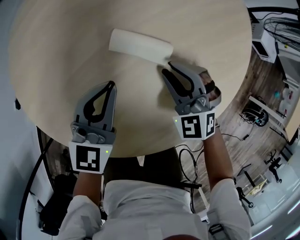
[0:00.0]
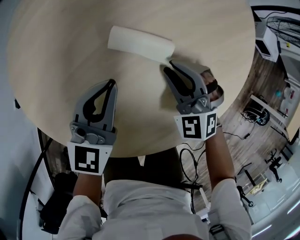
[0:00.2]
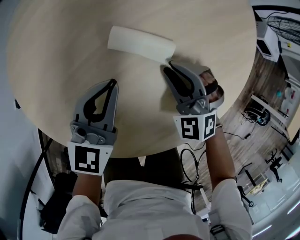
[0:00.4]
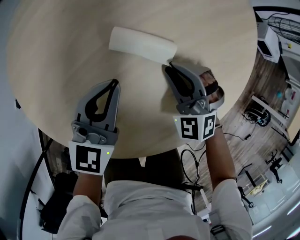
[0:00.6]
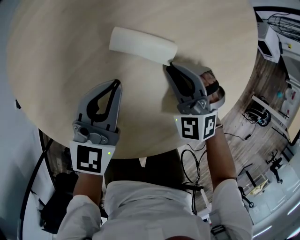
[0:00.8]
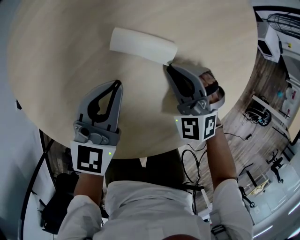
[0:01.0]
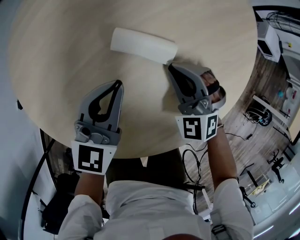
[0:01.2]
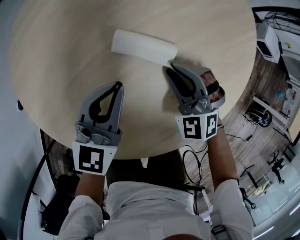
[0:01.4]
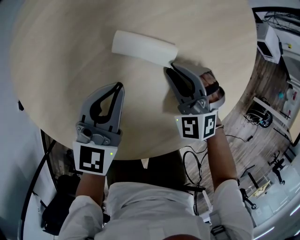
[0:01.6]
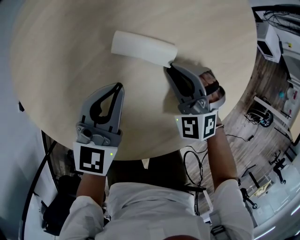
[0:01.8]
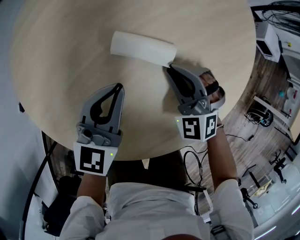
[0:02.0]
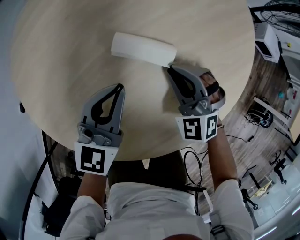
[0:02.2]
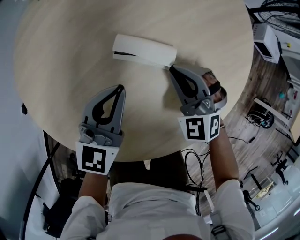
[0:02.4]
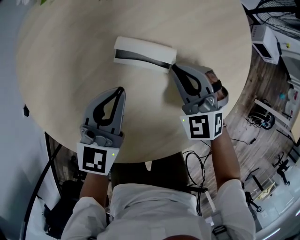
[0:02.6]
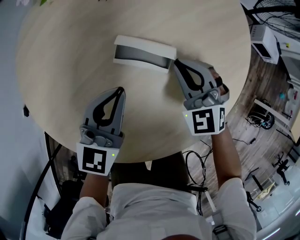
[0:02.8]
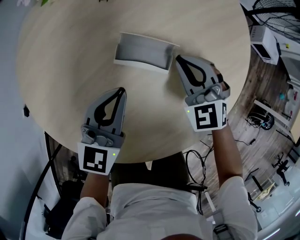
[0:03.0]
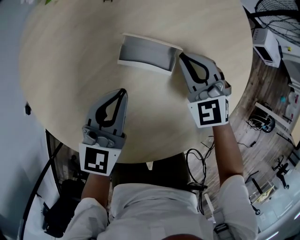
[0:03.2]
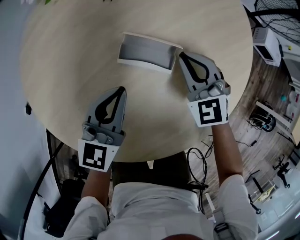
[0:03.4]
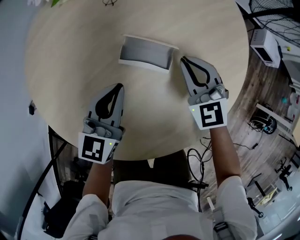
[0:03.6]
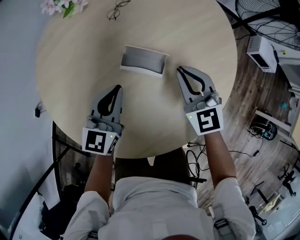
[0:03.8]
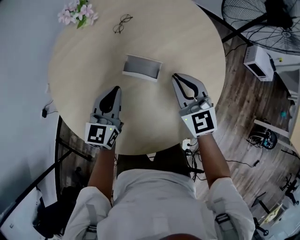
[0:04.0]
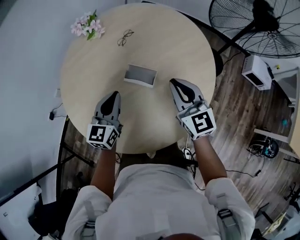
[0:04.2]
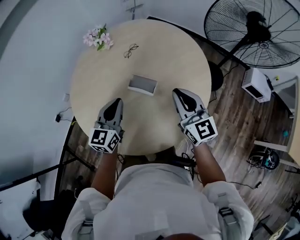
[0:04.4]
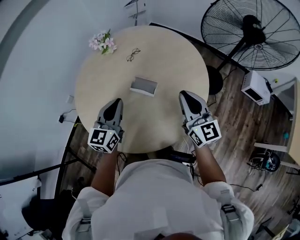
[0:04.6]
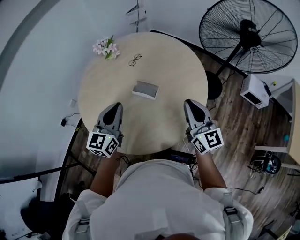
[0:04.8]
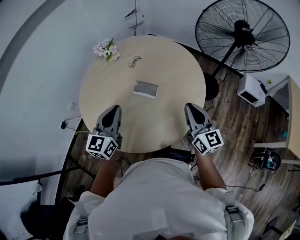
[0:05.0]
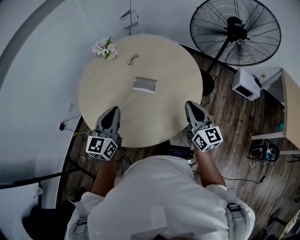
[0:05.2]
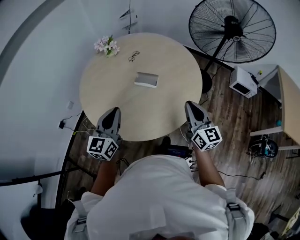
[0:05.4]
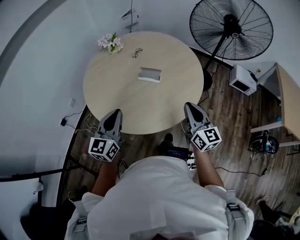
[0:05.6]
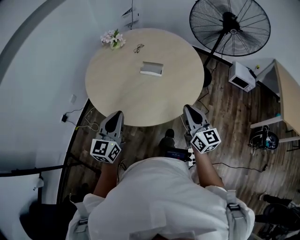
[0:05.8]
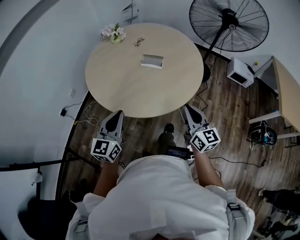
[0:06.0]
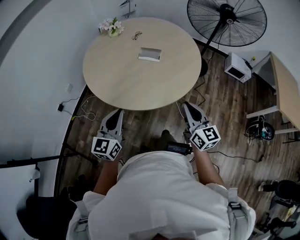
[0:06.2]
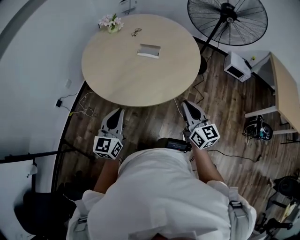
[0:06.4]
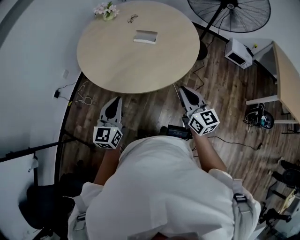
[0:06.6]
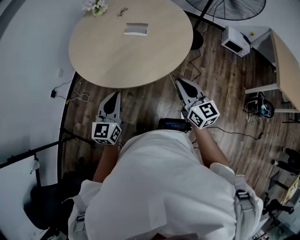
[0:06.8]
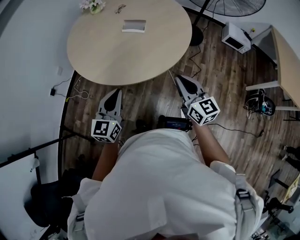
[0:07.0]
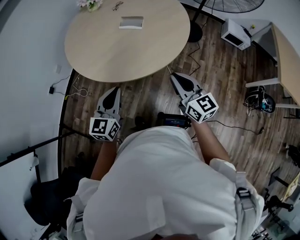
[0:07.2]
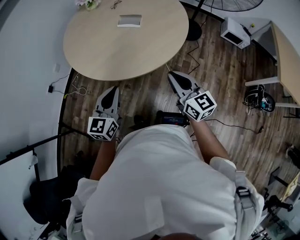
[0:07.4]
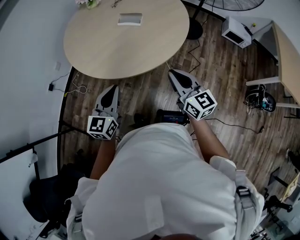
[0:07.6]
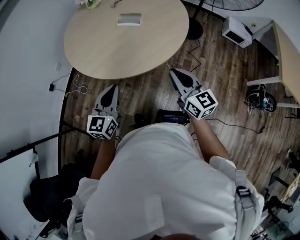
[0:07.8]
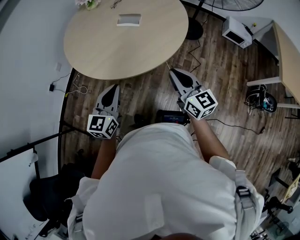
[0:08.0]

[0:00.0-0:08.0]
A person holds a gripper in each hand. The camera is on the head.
0.0 to 1.6 s: The grippers make only small movements.
1.6 to 3.2 s: The right gripper moves forward, approximately 5 cm, and turns by about 20 degrees.
3.2 to 4.8 s: The left gripper shifts some 30 cm upward and backward. Meanwhile the right gripper travels upward, backward and to the right by roughly 40 cm, and tilts its fingers roughly 30 degrees upward.
4.8 to 6.4 s: Both grippers travel together backward, approximately 35 cm.
6.4 to 8.0 s: The right gripper goes roughly 5 cm to the right; the left gripper shifts roughly 10 cm to the right.

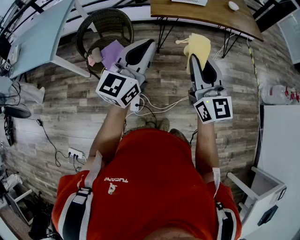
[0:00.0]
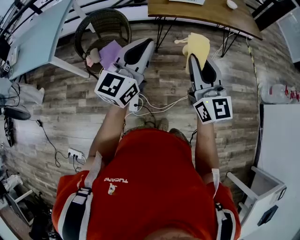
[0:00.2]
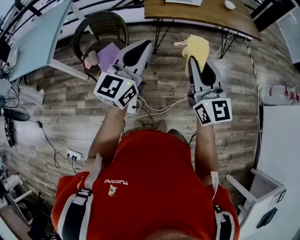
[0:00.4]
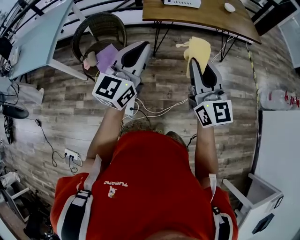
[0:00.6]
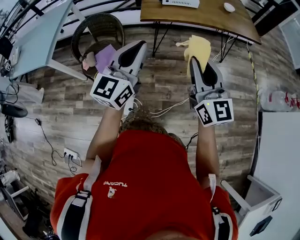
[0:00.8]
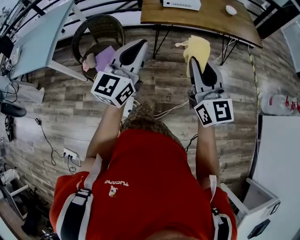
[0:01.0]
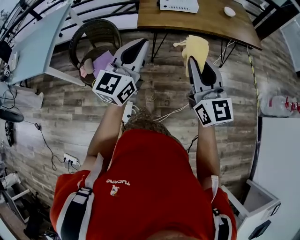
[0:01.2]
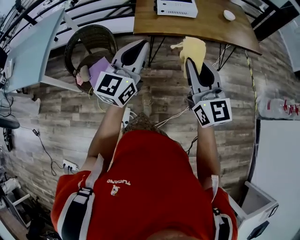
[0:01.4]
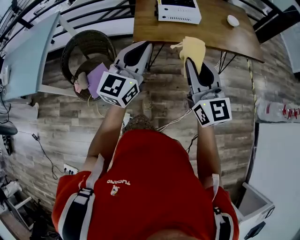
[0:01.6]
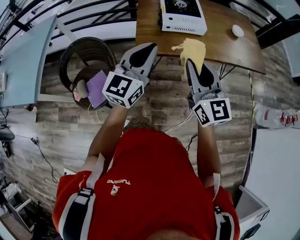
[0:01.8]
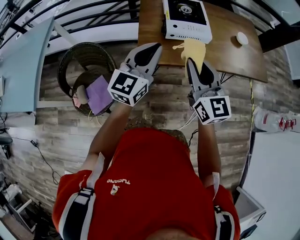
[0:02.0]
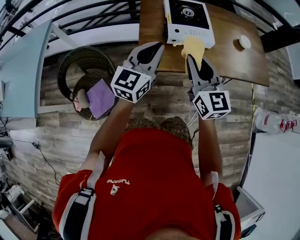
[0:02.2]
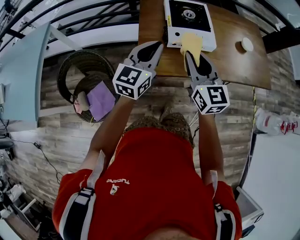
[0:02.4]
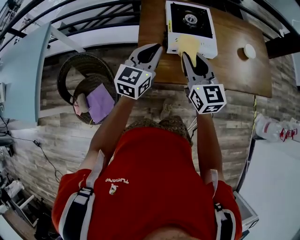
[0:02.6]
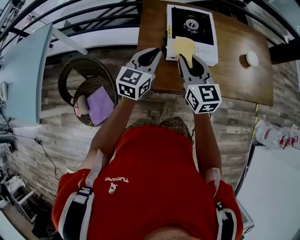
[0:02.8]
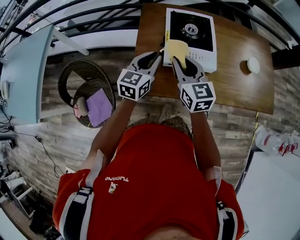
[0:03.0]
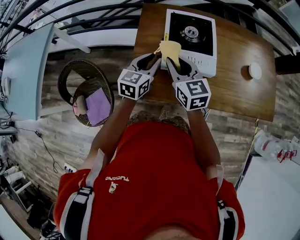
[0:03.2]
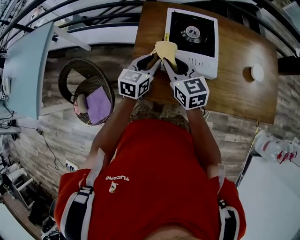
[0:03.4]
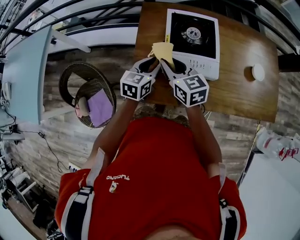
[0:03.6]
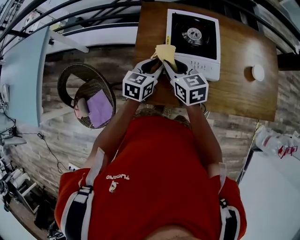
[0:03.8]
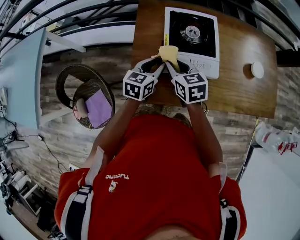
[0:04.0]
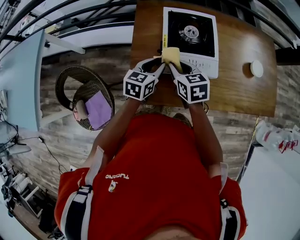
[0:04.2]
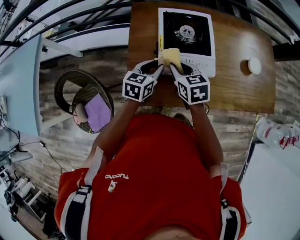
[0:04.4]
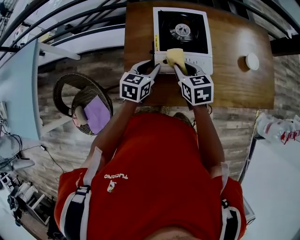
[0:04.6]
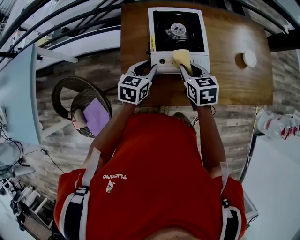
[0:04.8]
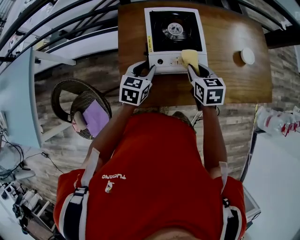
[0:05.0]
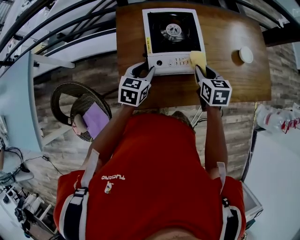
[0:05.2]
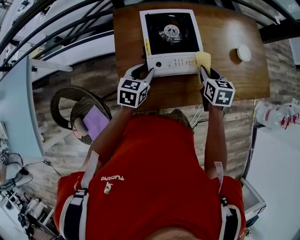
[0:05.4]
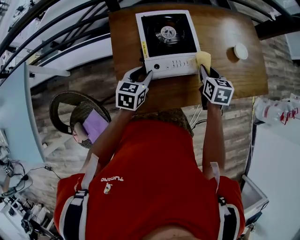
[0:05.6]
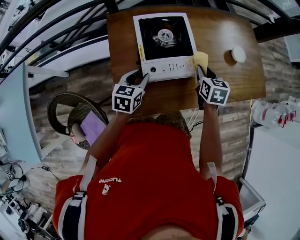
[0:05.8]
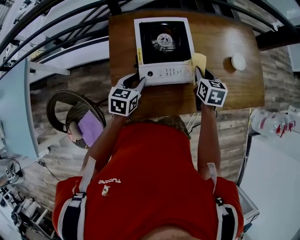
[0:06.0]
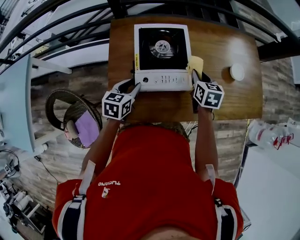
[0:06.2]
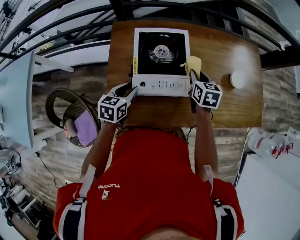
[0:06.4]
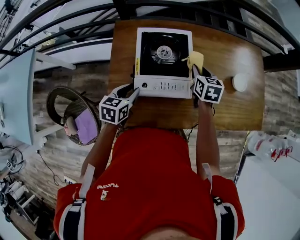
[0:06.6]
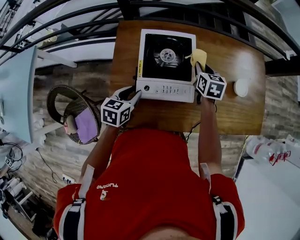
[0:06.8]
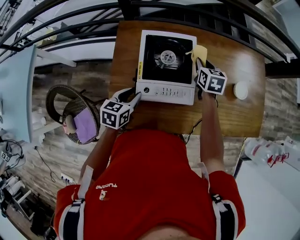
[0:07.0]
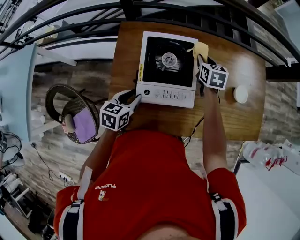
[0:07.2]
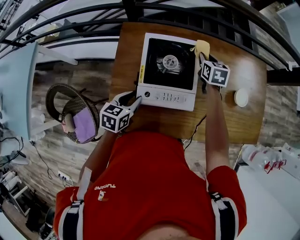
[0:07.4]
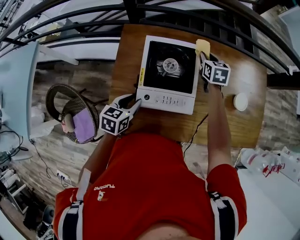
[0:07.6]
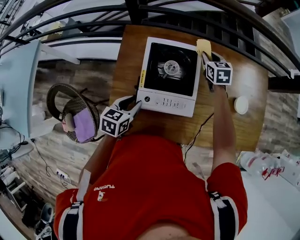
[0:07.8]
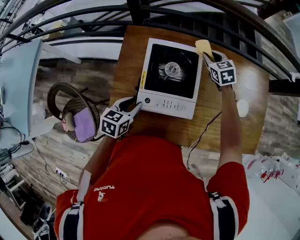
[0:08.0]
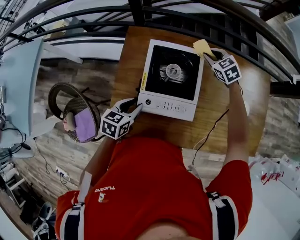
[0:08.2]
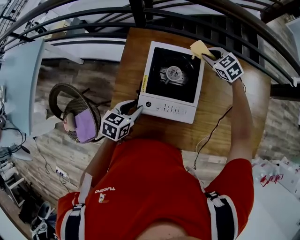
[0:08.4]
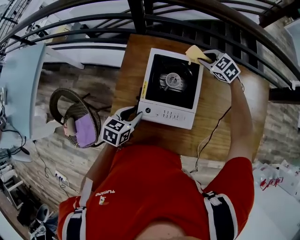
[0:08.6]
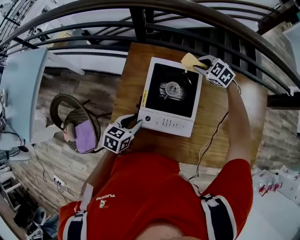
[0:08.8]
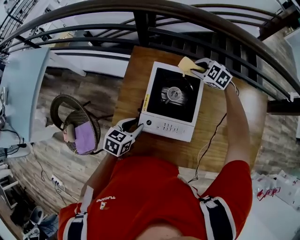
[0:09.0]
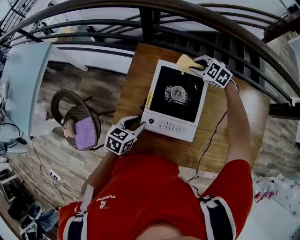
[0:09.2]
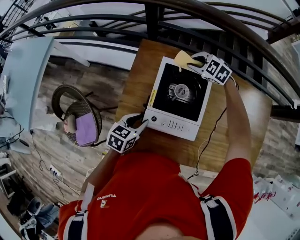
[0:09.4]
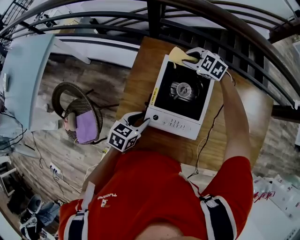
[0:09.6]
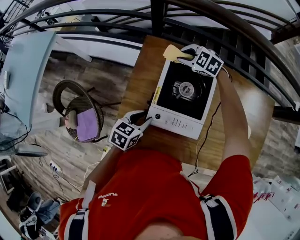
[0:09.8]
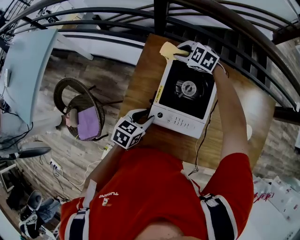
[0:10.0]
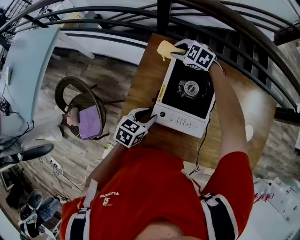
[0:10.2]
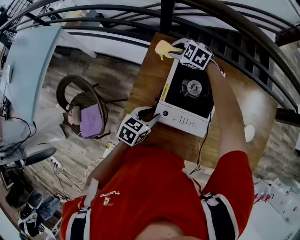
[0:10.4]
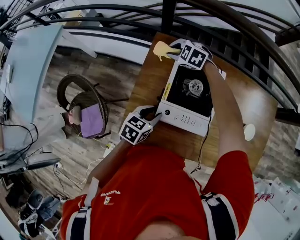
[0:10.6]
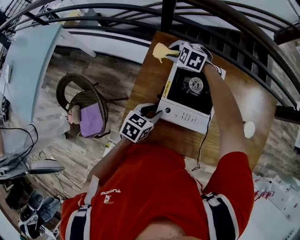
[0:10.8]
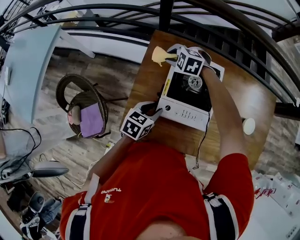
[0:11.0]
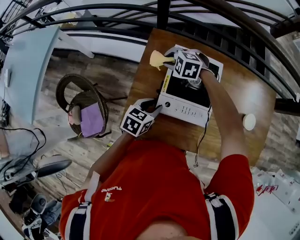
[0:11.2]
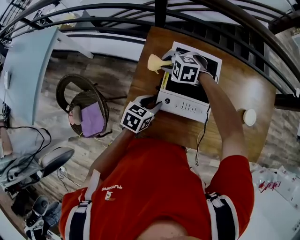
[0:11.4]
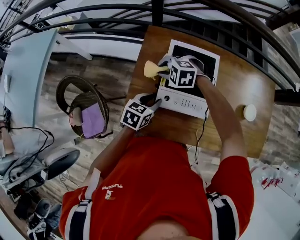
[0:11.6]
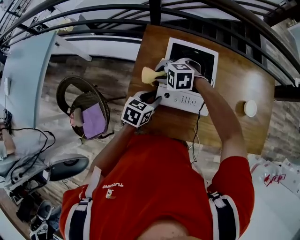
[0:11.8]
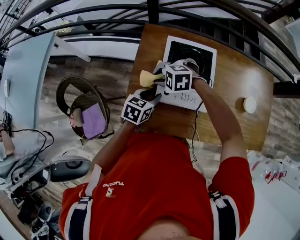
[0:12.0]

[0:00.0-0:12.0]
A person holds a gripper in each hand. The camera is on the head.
0.0 to 1.6 s: The two grippers go some 25 cm forward.
1.6 to 3.0 s: The two grippers go approximately 40 cm forward. The left gripper rotates roughly 20 degrees; the right gripper rotates roughly 20 degrees.
3.0 to 4.4 s: The right gripper moves downward and forward, roughly 10 cm, and turns by about 30 degrees, while the left gripper heads downward, covering about 10 cm.
4.4 to 6.0 s: The right gripper goes about 20 cm to the right, and rotates about 30 degrees.
6.0 to 7.6 s: The right gripper is displaced forward by about 25 cm.
7.6 to 9.0 s: The right gripper moves some 10 cm, and rotates around the line of its fingers by approximately 60 degrees, counterclockwise from behind.
9.0 to 10.4 s: The right gripper goes about 20 cm to the left.
10.4 to 12.0 s: The right gripper changes place by about 25 cm.

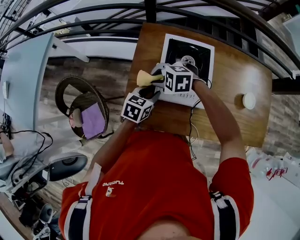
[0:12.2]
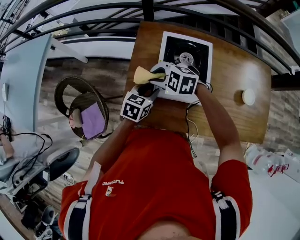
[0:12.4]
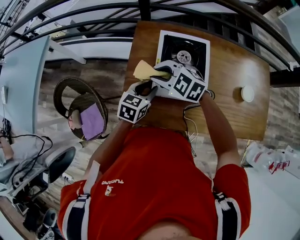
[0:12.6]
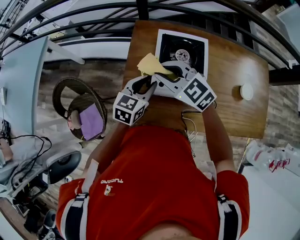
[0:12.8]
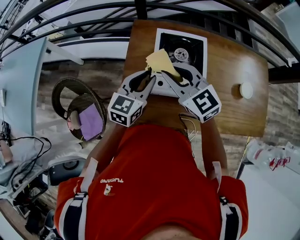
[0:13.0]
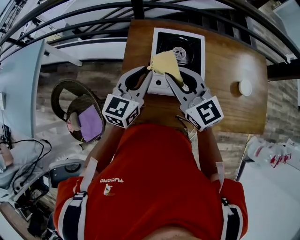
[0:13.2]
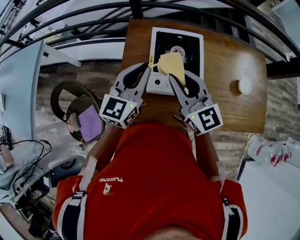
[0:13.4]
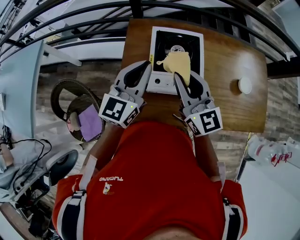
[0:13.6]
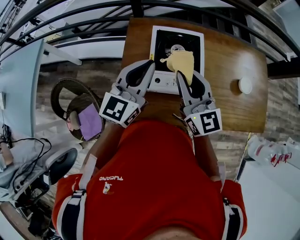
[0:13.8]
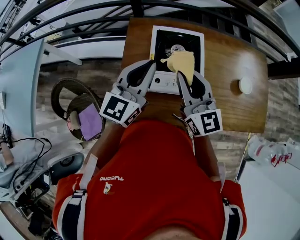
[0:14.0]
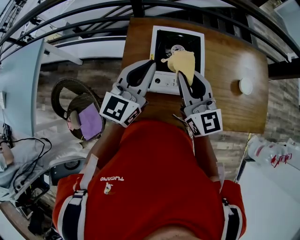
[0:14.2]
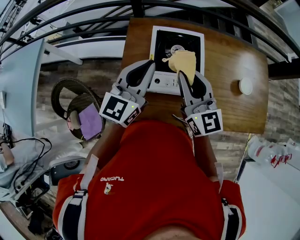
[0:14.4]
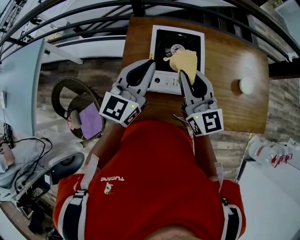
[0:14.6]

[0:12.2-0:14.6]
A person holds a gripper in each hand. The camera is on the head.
12.2 to 13.4 s: Both grippers travel together upward, approximately 15 cm. The right gripper points its fingers roughly 50 degrees further upward. The left gripper tilts its fingers some 40 degrees upward, and closes up.
13.4 to 14.6 s: The grippers make only small movements.

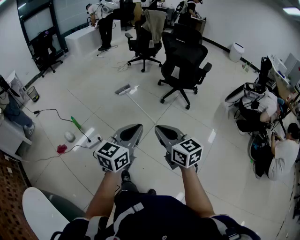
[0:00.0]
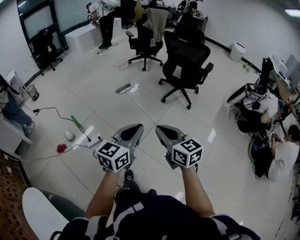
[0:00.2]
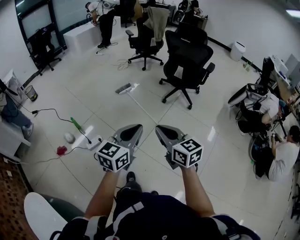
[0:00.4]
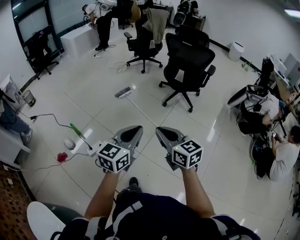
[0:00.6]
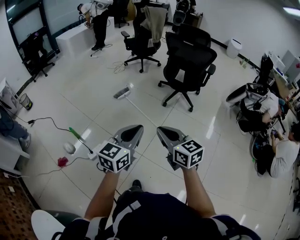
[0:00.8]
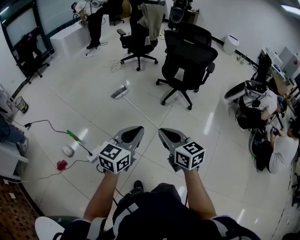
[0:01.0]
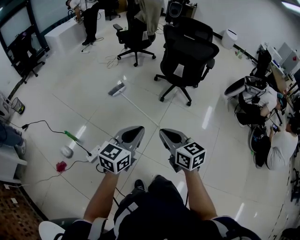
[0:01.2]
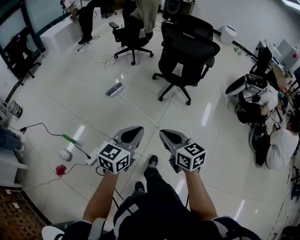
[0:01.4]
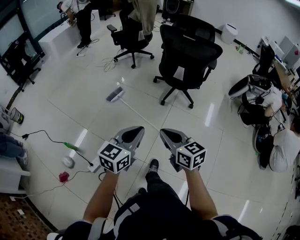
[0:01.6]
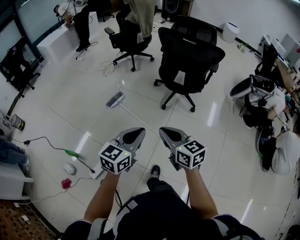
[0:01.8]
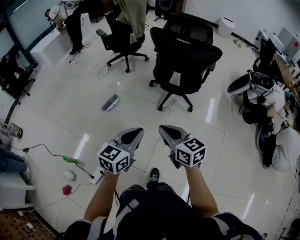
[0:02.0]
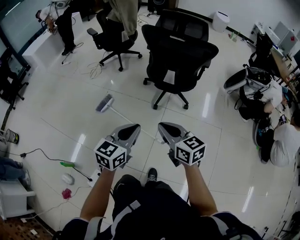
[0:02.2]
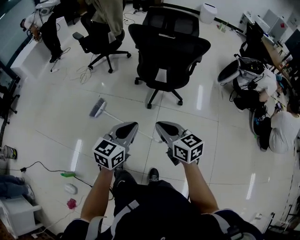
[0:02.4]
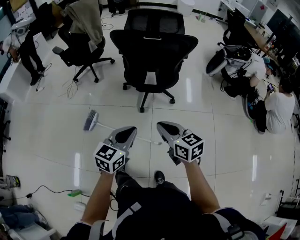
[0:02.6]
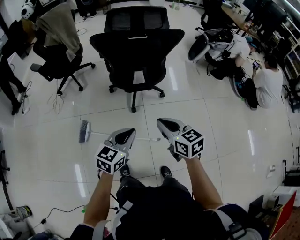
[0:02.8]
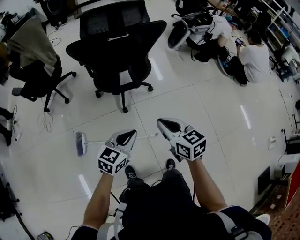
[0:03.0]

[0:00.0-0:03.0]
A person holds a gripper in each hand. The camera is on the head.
0.0 to 1.6 s: Both grippers travel together forward, some 30 cm.
1.6 to 3.0 s: The left gripper moves some 35 cm, and swivels approximately 50 degrees; the right gripper changes place by roughly 30 cm, and changes its angle by some 40 degrees.
